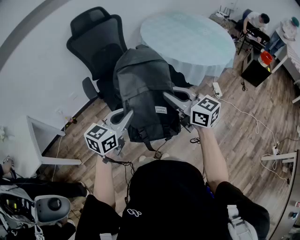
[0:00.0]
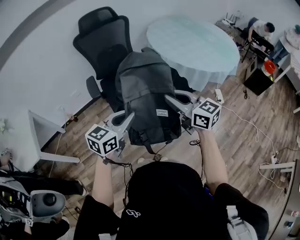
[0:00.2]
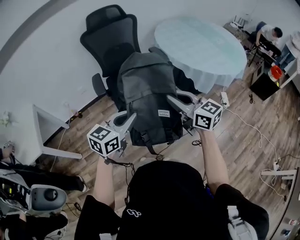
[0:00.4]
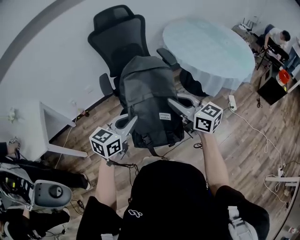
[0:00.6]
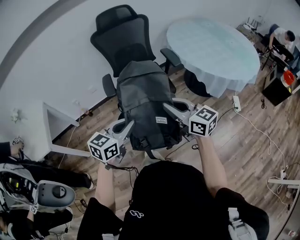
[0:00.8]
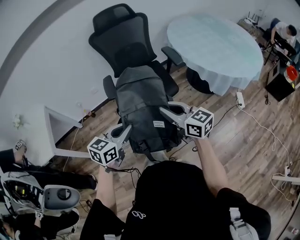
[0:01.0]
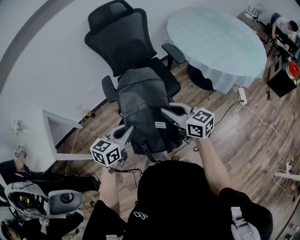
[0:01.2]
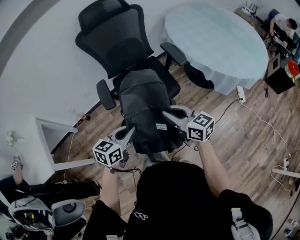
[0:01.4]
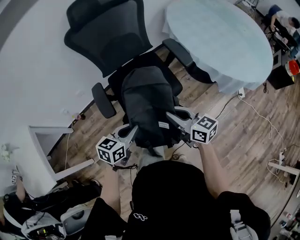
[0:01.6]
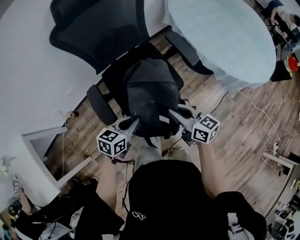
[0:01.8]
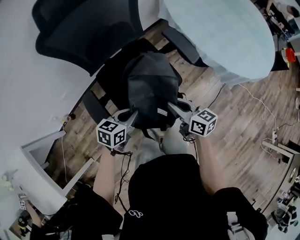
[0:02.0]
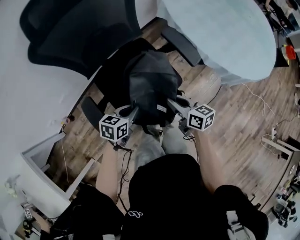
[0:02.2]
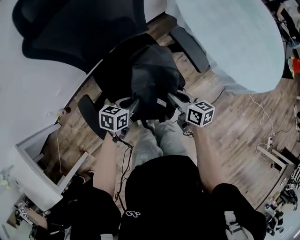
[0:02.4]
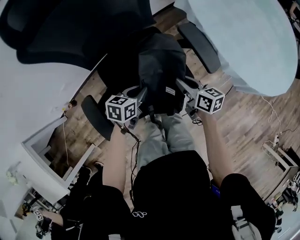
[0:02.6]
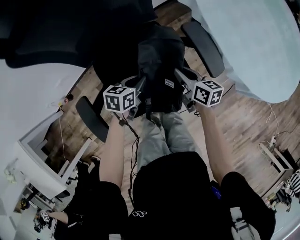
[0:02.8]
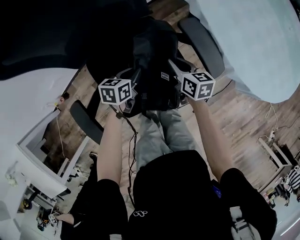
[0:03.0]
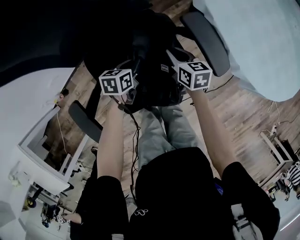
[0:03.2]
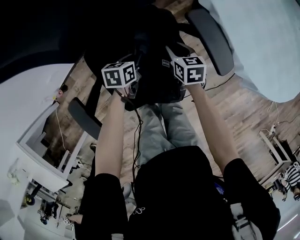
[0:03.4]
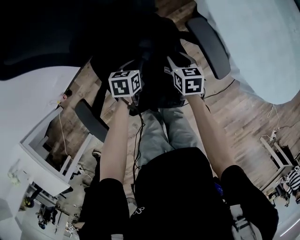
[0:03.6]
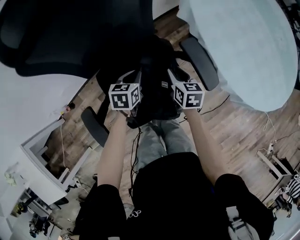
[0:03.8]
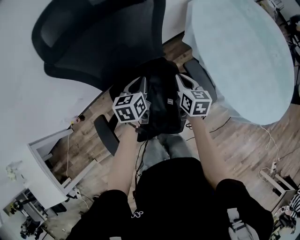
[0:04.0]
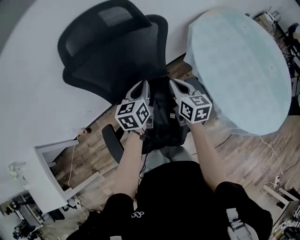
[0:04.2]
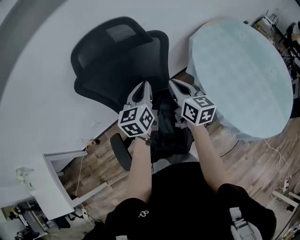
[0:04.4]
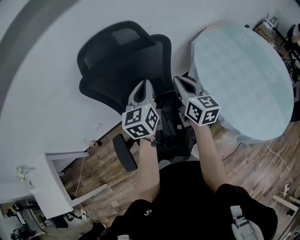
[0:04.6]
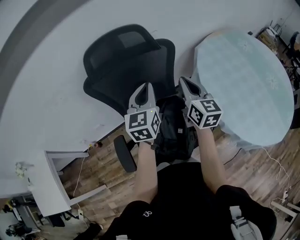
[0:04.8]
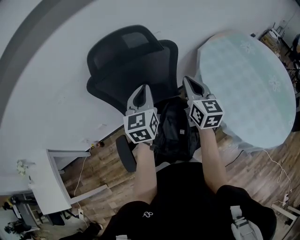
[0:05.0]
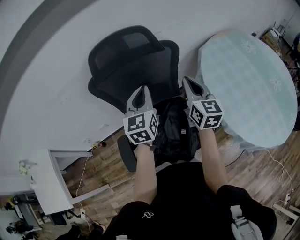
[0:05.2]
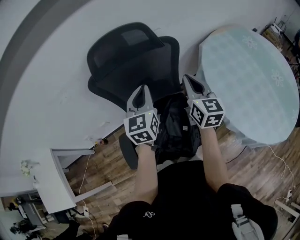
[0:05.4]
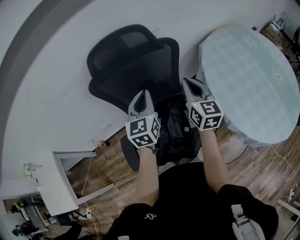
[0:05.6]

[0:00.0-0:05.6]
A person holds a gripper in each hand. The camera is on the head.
0:00.0 to 0:01.4: The left gripper travels forward, to the left and downward by roughly 20 cm; the right gripper travels forward, downward and to the left by some 25 cm.
0:01.4 to 0:02.8: The pair of grippers is taken forward, some 40 cm. Both grippers travel together downward, roughly 25 cm. The left gripper rotates about 30 degrees. Meanwhile the right gripper turns by roughly 40 degrees.
0:02.8 to 0:04.2: Both grippers move upward and forward, roughly 25 cm. The left gripper swivels approximately 40 degrees. Meanwhile the right gripper rotates some 20 degrees, and opens and closes again.
0:04.2 to 0:05.6: Both grippers travel together upward, about 10 cm. The left gripper swivels some 20 degrees.

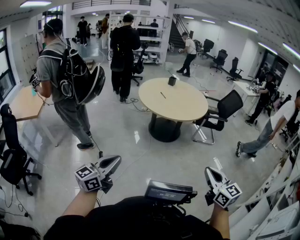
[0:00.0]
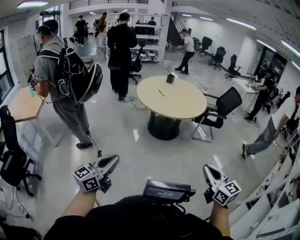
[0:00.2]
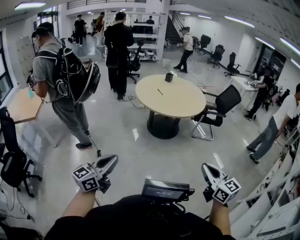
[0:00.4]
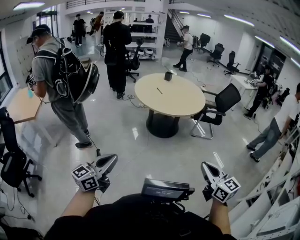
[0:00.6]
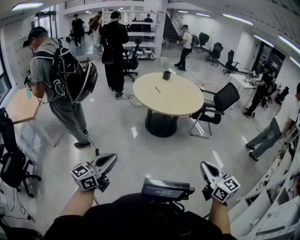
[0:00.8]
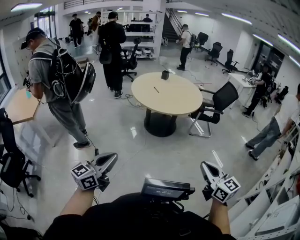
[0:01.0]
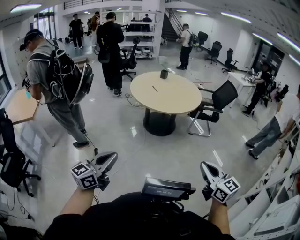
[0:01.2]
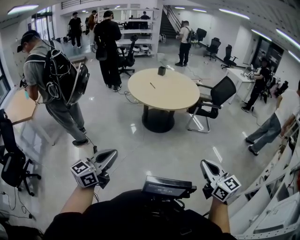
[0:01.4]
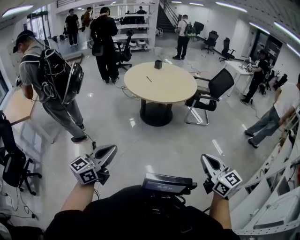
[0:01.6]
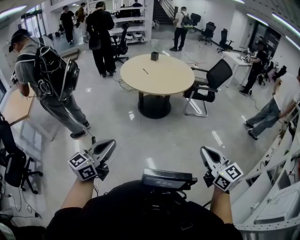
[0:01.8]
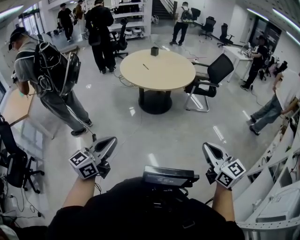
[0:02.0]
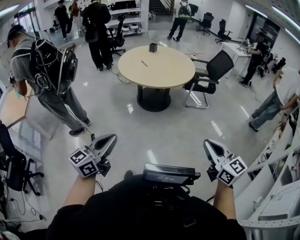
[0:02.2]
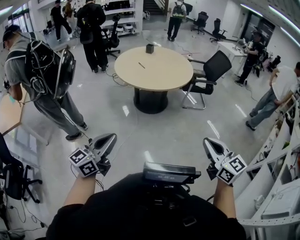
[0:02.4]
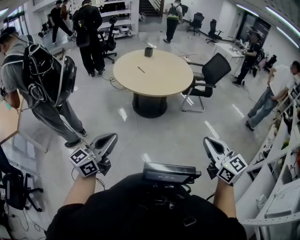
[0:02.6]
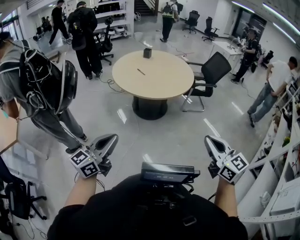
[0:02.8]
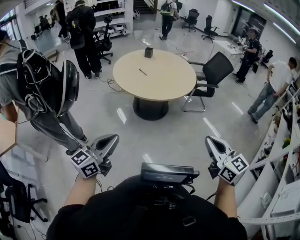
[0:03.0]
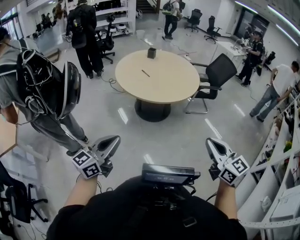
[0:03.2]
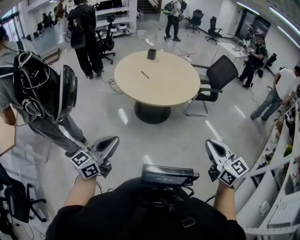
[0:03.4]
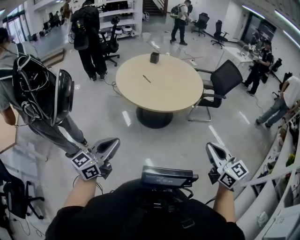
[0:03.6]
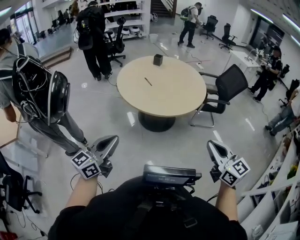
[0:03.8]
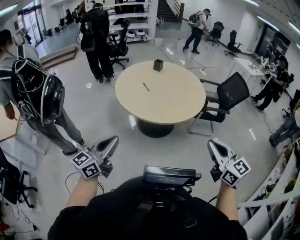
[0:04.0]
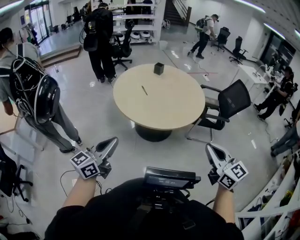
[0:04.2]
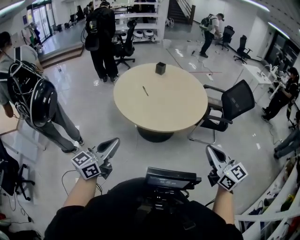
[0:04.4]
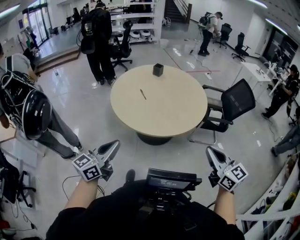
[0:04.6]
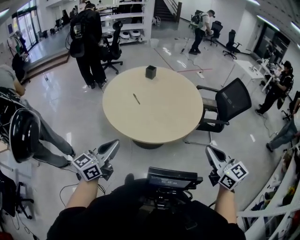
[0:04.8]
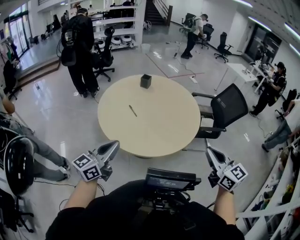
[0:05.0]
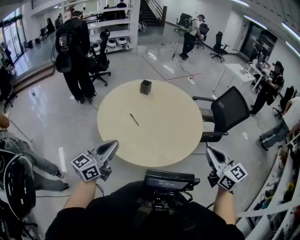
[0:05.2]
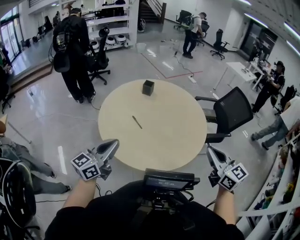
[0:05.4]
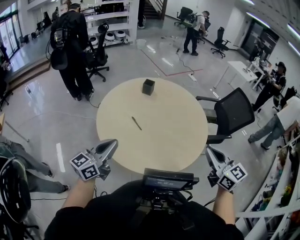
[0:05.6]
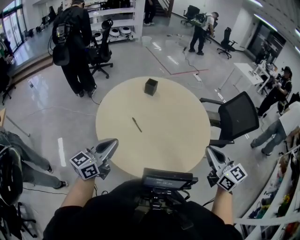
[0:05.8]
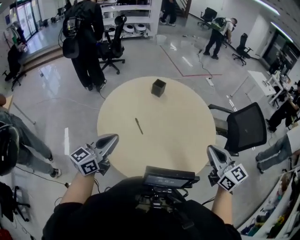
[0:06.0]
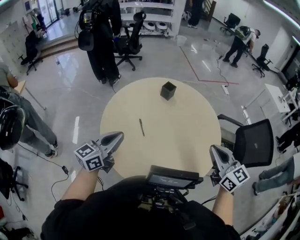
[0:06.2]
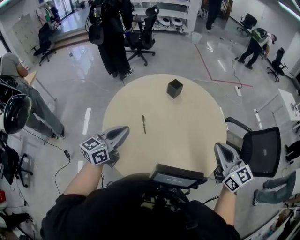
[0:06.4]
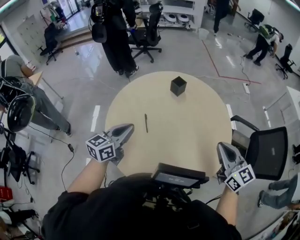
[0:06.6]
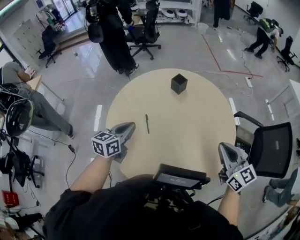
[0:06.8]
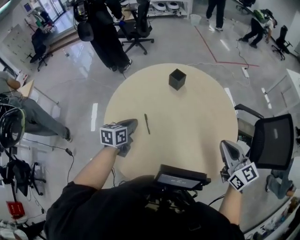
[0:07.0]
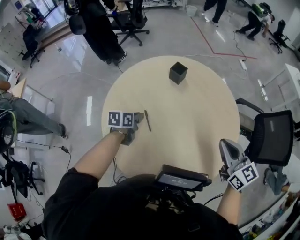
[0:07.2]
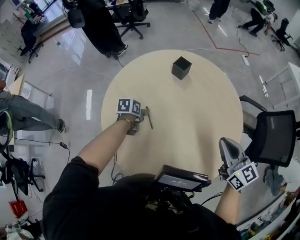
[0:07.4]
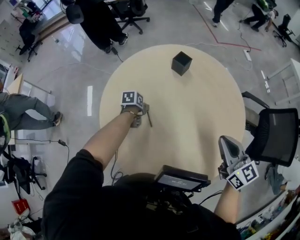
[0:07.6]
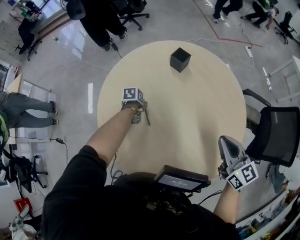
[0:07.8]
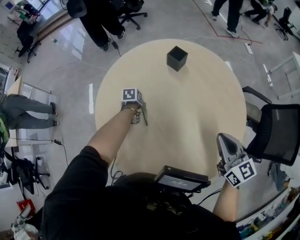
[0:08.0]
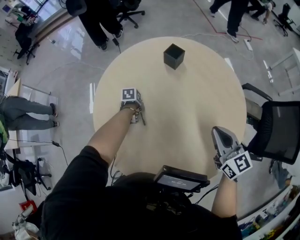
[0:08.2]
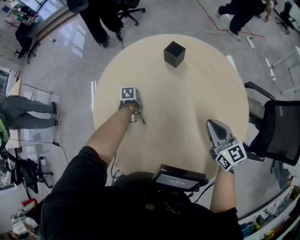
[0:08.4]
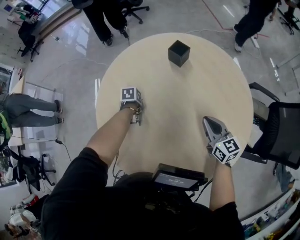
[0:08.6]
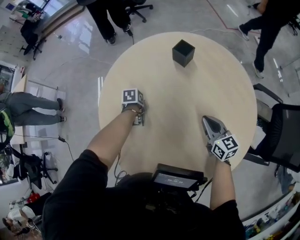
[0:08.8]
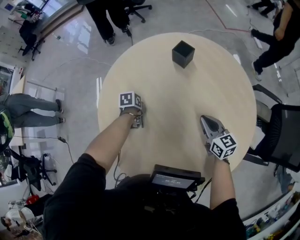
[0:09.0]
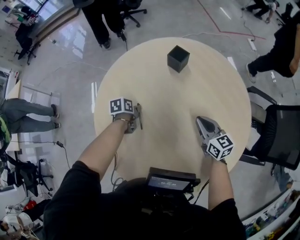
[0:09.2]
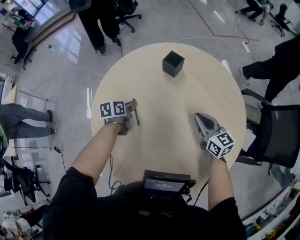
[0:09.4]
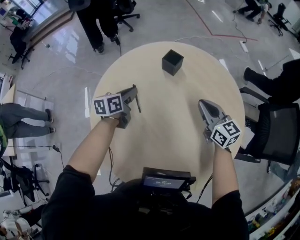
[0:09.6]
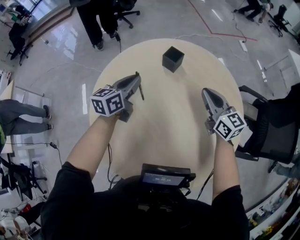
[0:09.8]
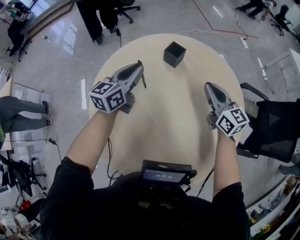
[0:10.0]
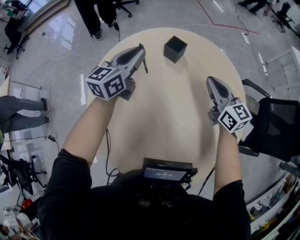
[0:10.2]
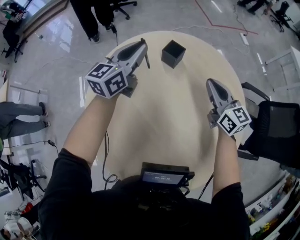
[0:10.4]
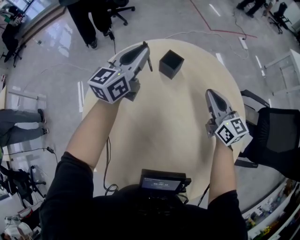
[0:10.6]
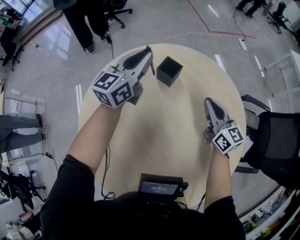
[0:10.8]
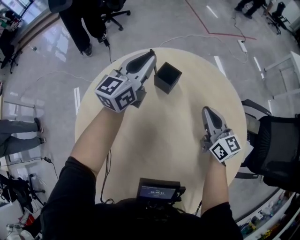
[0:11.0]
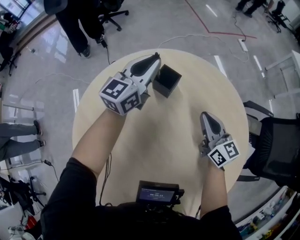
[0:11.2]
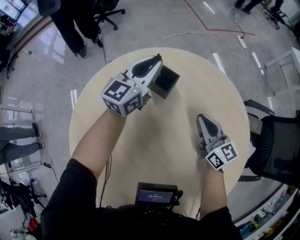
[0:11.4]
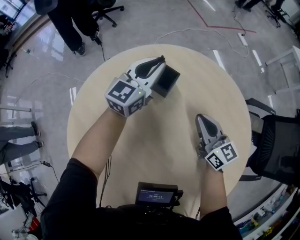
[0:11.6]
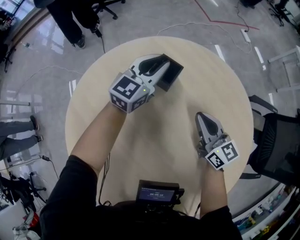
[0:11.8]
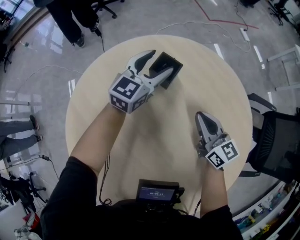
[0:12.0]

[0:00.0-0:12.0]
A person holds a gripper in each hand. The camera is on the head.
0:00.0 to 0:01.6: Both grippers travel together to the right, about 10 cm.
0:01.6 to 0:03.0: The grippers both shift forward and to the left by about 25 cm.
0:03.0 to 0:04.4: Both grippers travel together forward and to the right, some 35 cm.
0:04.4 to 0:06.0: Both grippers are carried forward, some 50 cm.
0:06.0 to 0:07.6: The right gripper heads forward and downward, covering about 20 cm. Meanwhile the left gripper heads downward and forward, covering approximately 40 cm, angles its fingers downward, by about 60 degrees, and opens its fingers.
0:07.6 to 0:09.0: The left gripper travels downward by roughly 5 cm, and closes its fingers, while the right gripper goes approximately 20 cm downward.
0:09.0 to 0:10.4: The right gripper heads upward and forward, covering approximately 20 cm, while the left gripper is displaced upward and forward by about 40 cm, and angles its fingers upward, by about 70 degrees.
0:10.4 to 0:12.0: The left gripper moves downward, forward and to the right, roughly 25 cm, and opens its fingers; the right gripper heads downward, covering roughly 15 cm.

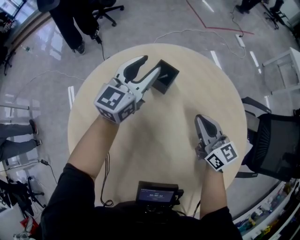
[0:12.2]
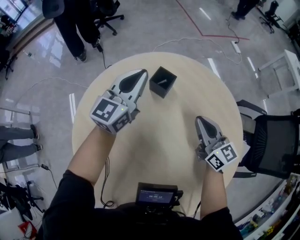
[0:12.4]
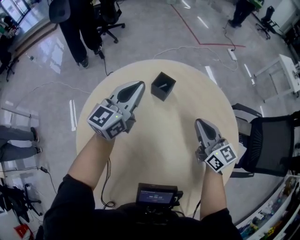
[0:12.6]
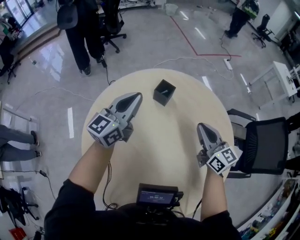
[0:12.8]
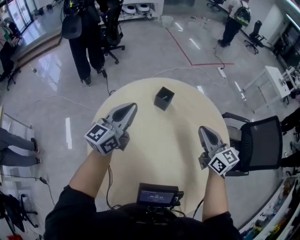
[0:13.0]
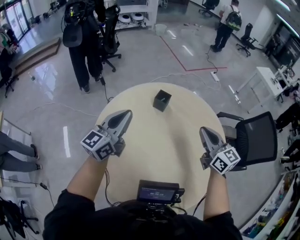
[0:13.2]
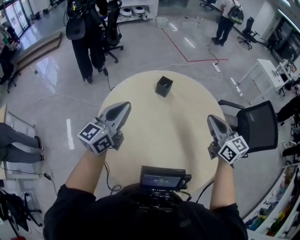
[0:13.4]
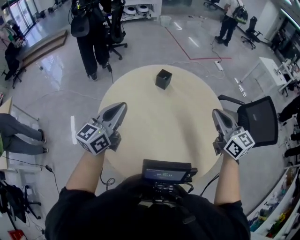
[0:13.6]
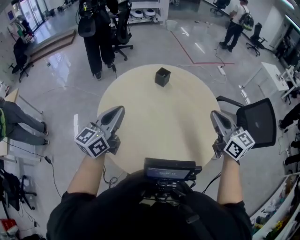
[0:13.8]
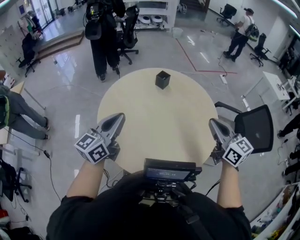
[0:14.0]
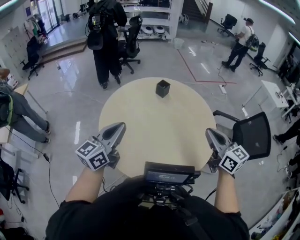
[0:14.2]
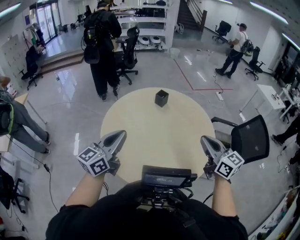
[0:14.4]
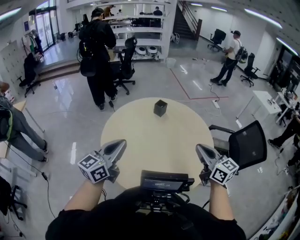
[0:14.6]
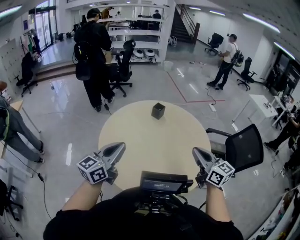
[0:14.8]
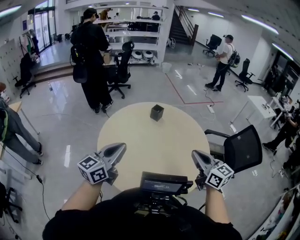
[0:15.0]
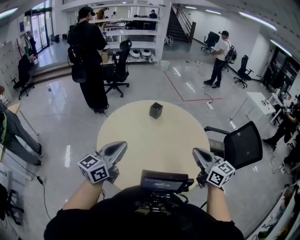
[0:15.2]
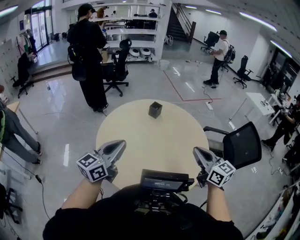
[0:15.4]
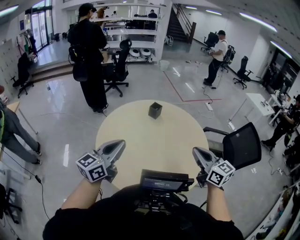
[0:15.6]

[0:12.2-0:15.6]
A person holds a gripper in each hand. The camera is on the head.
0:12.2 to 0:13.8: The grippers both shift backward and upward by roughly 50 cm. The left gripper closes its fingers.
0:13.8 to 0:15.6: Both grippers move backward, approximately 10 cm.

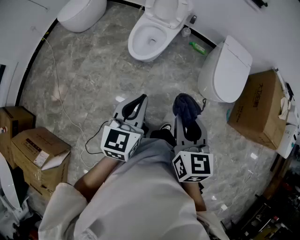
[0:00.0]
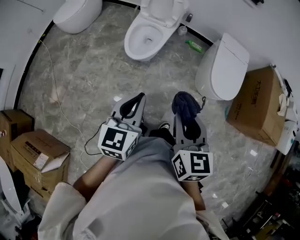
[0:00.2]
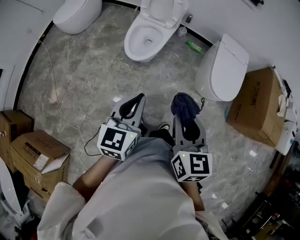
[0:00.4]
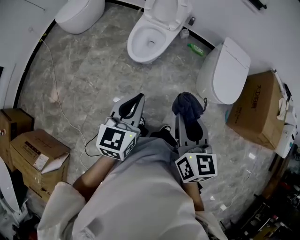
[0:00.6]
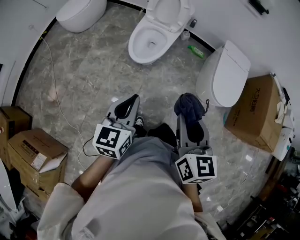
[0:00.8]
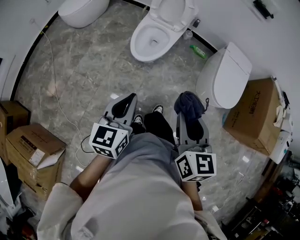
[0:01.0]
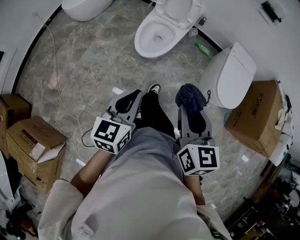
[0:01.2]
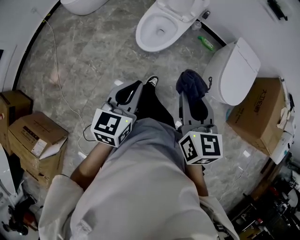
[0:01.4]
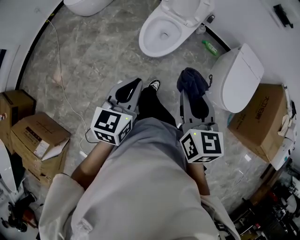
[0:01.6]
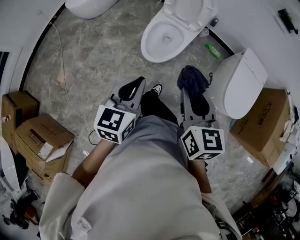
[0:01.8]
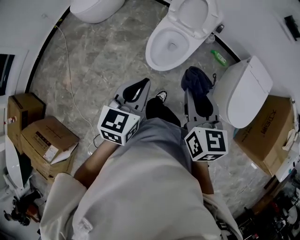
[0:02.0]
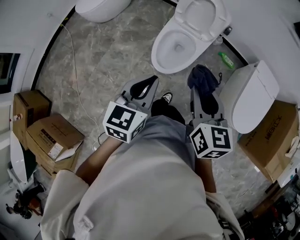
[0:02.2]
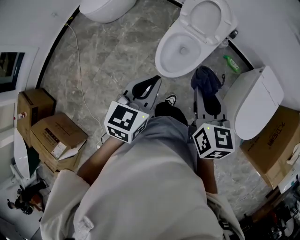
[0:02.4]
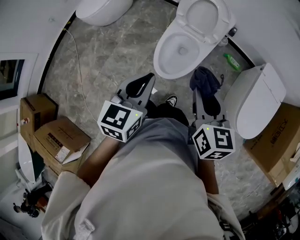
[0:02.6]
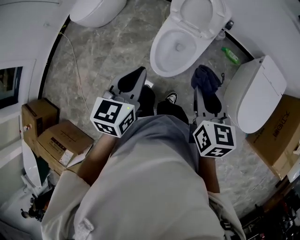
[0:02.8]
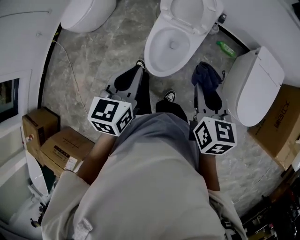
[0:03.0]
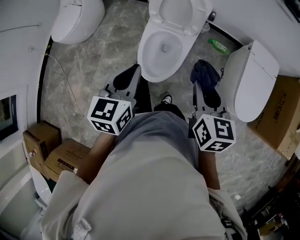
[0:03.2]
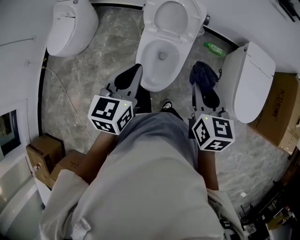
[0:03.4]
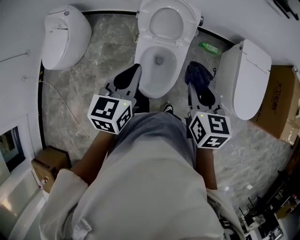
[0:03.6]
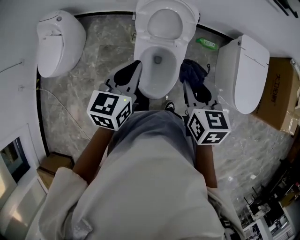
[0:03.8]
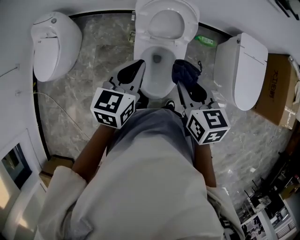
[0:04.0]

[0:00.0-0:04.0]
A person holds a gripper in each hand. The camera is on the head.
0:00.0 to 0:01.4: The right gripper heads forward and to the left, covering roughly 10 cm. The left gripper goes some 10 cm to the left and forward.
0:01.4 to 0:02.6: Both grippers travel together forward, roughly 30 cm.
0:02.6 to 0:04.0: The right gripper heads forward and to the left, covering some 25 cm, while the left gripper goes about 30 cm forward, and swivels approximately 30 degrees.
